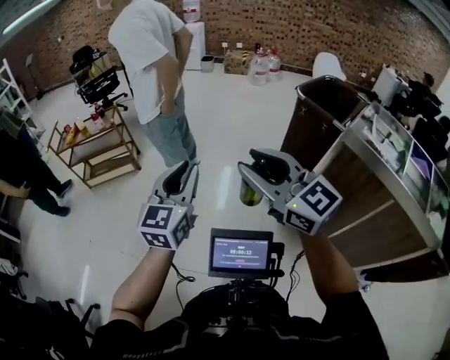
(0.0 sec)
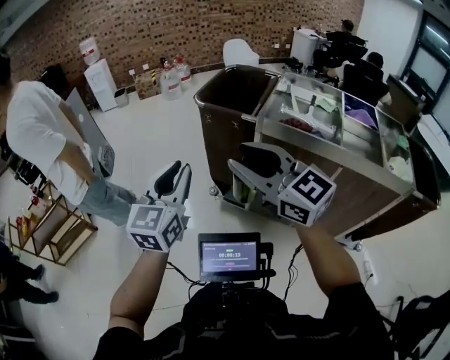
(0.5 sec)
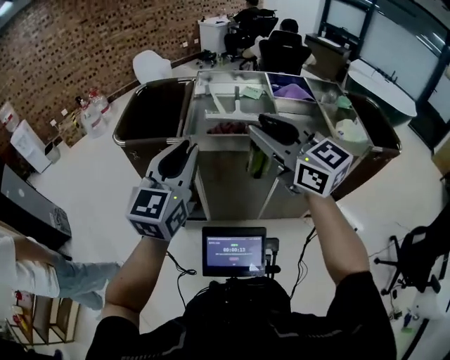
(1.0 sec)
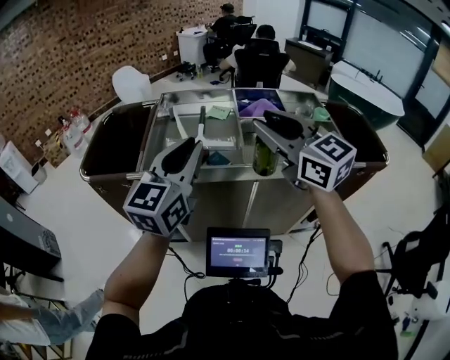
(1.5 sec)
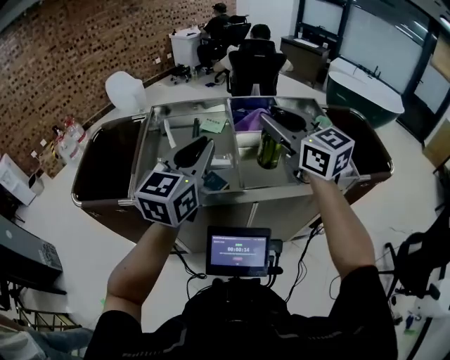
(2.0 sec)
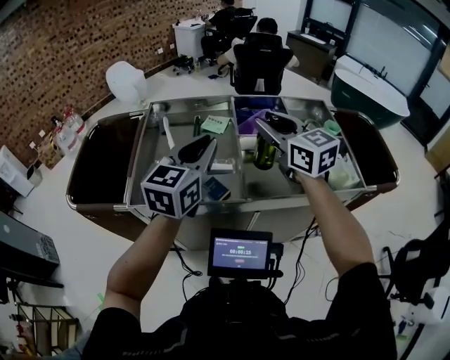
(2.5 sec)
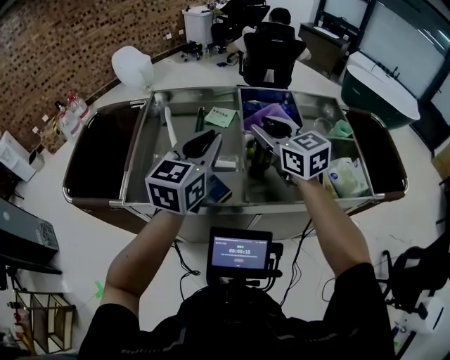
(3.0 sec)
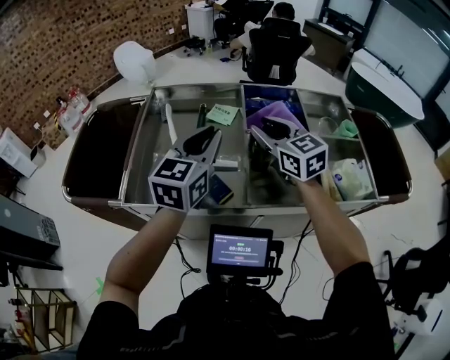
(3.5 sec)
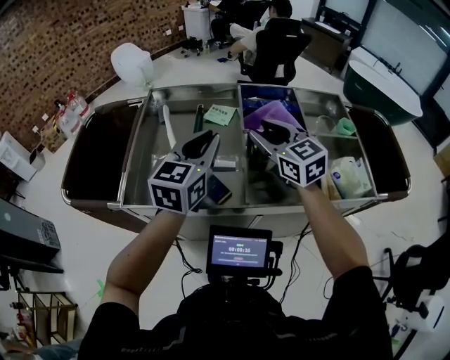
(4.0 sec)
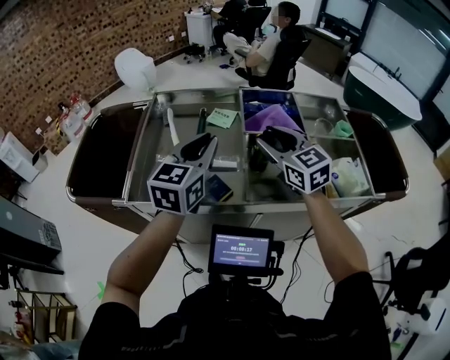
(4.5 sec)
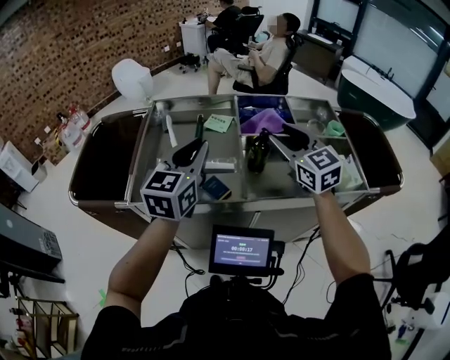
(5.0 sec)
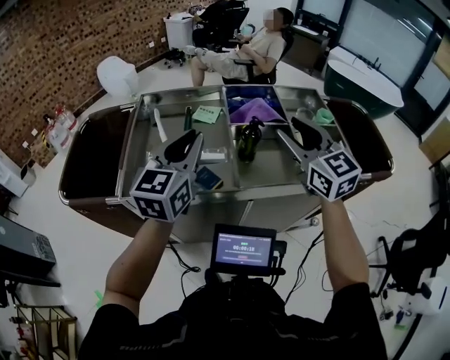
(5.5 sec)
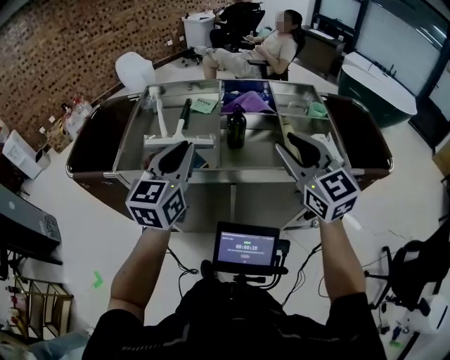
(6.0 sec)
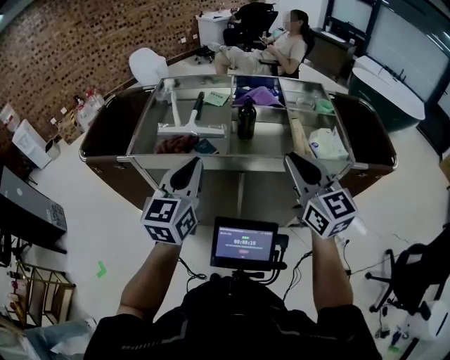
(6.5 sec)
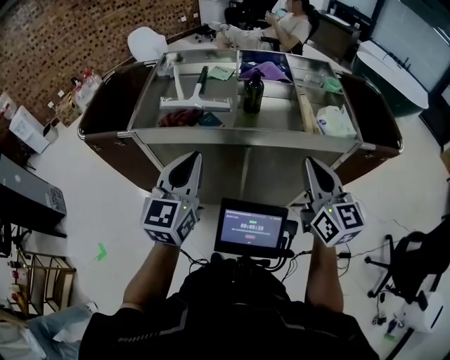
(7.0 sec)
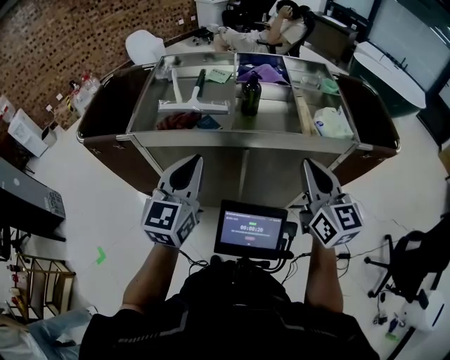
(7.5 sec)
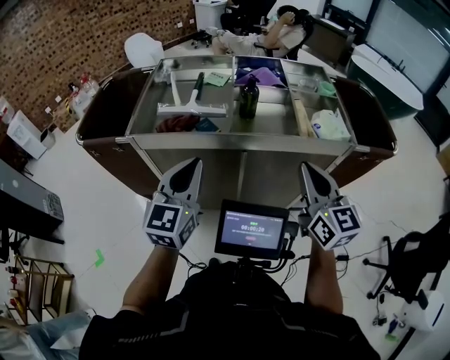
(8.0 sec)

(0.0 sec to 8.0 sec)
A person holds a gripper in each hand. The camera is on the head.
0.0 sec - 2.0 sec: The pair of grippers is taken some 1 m. The left gripper turns by roughly 70 degrees. The right gripper changes its angle by some 70 degrees.
2.0 sec - 4.0 sec: The two grippers go approximately 20 cm forward and downward.
4.0 sec - 6.0 sec: The left gripper moves backward, roughly 25 cm, while the right gripper is displaced backward and to the right by some 35 cm.
6.0 sec - 8.0 sec: The two grippers go about 15 cm backward and downward. The right gripper turns by about 20 degrees, and closes up.

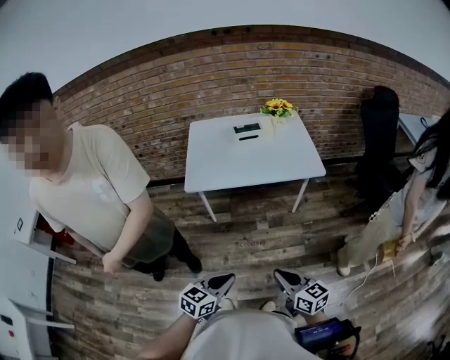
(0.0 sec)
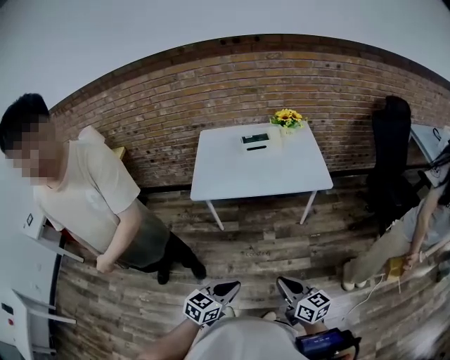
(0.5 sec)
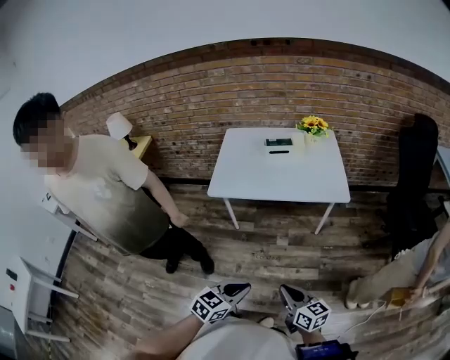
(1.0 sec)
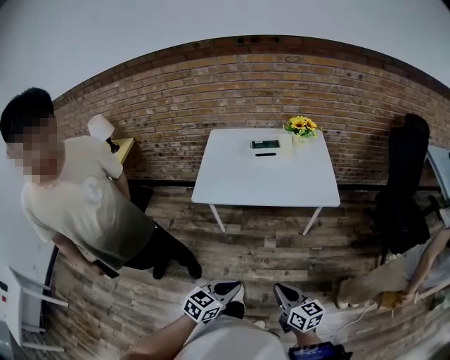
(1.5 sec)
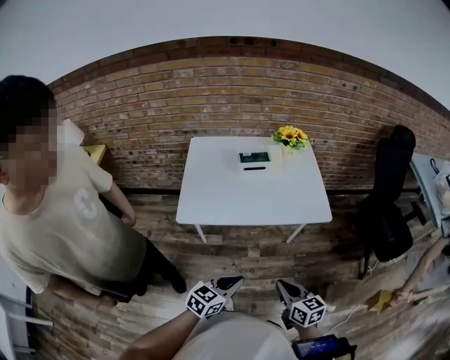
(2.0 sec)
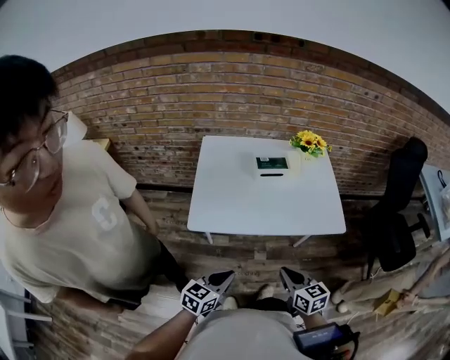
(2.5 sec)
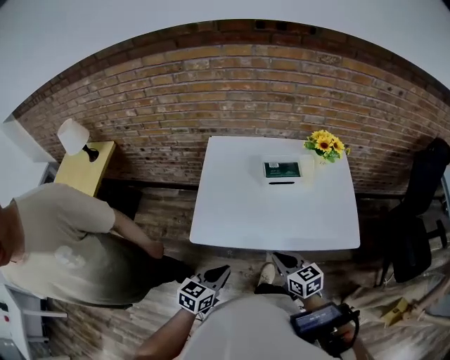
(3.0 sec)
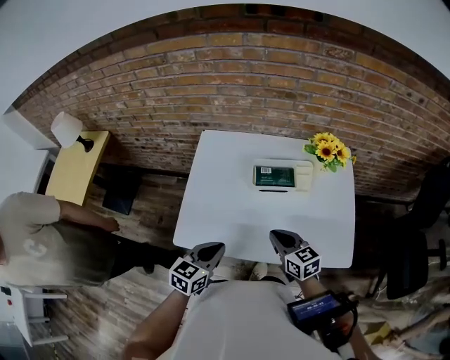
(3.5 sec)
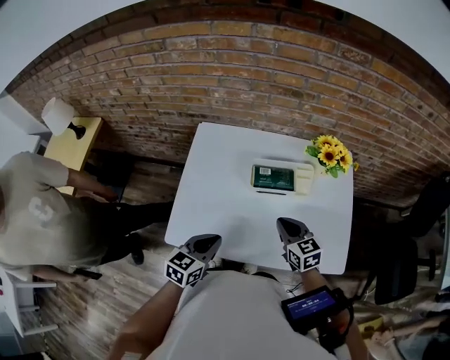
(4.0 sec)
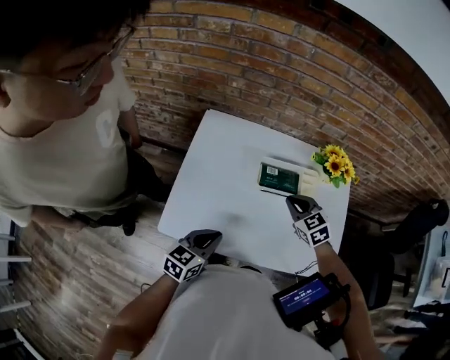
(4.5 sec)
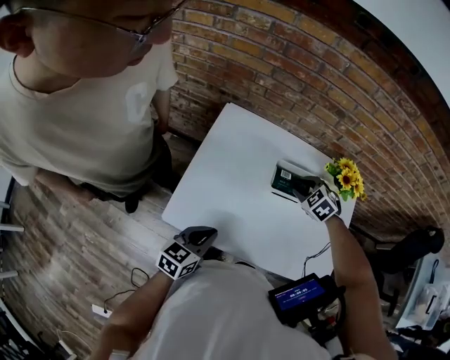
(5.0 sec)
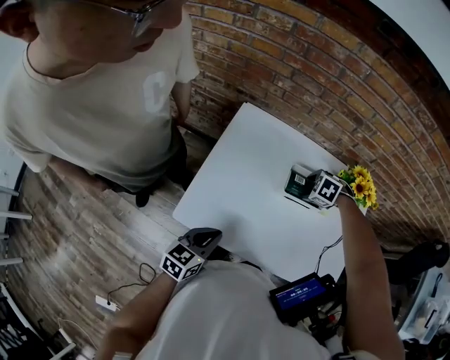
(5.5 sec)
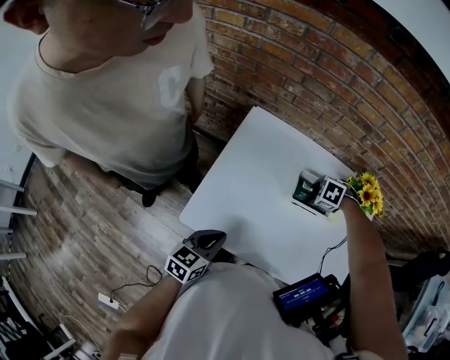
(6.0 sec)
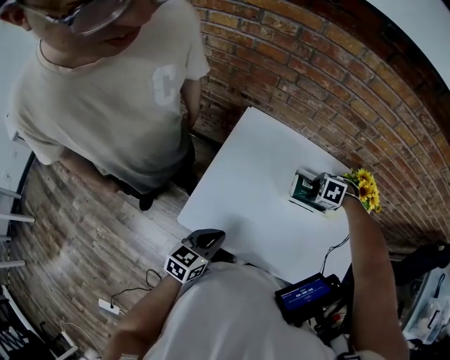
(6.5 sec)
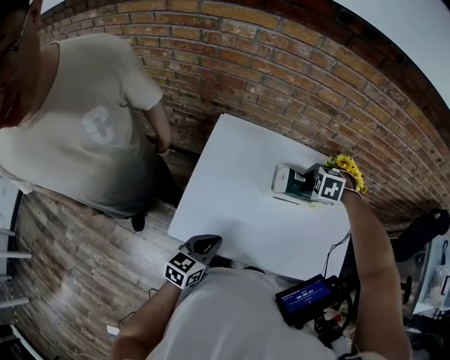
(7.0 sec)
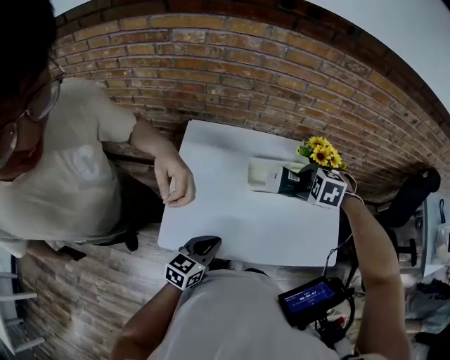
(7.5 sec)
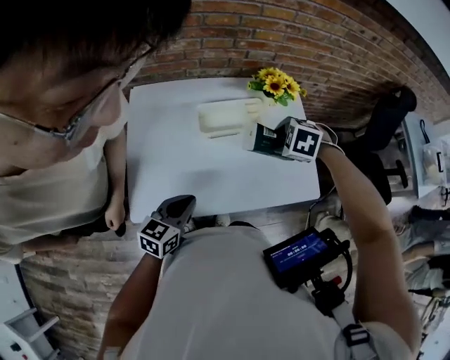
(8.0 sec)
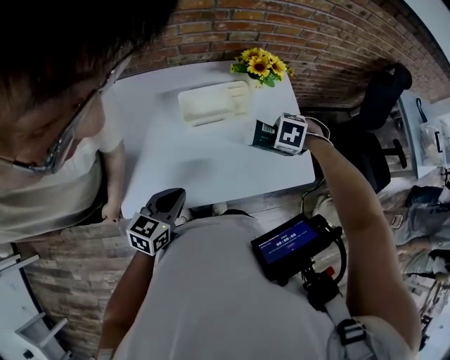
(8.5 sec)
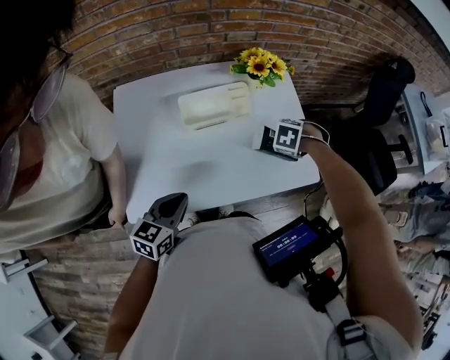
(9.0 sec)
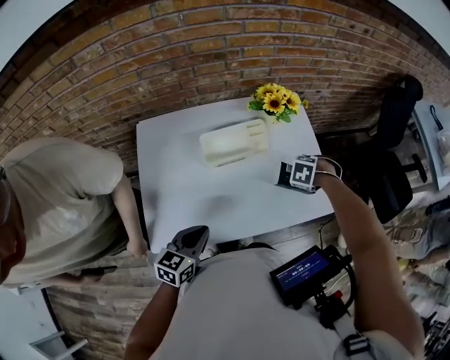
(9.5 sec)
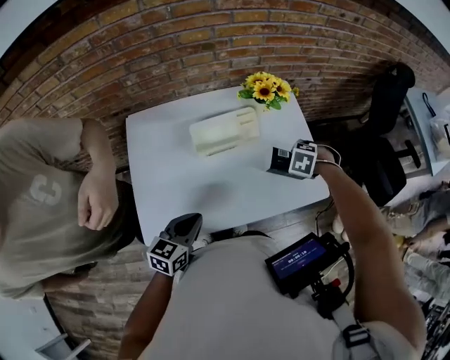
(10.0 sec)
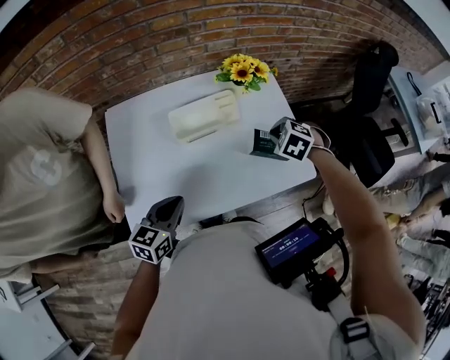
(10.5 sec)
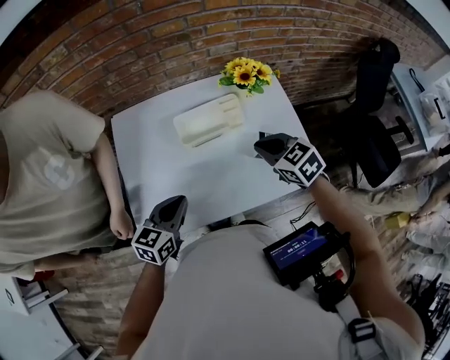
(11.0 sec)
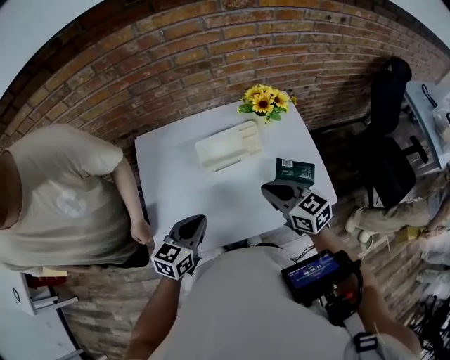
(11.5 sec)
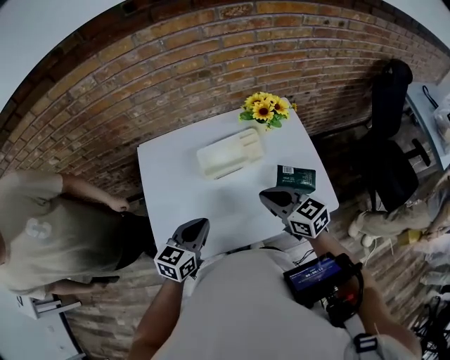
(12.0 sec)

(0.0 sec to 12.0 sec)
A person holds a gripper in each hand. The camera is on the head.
0.0 sec - 2.0 sec: The two grippers go approximately 20 cm forward.
2.0 sec - 4.0 sec: Both grippers move forward, approximately 40 cm. The right gripper rotates about 20 degrees, while the left gripper turns by about 20 degrees.
4.0 sec - 6.0 sec: The right gripper shifts by about 20 cm, tips its fingers downward by roughly 50 degrees, and opens its fingers; the left gripper changes place by some 5 cm.
6.0 sec - 8.0 sec: The left gripper moves about 10 cm, and swivels roughly 30 degrees. Meanwhile the right gripper changes place by roughly 20 cm, and swivels about 20 degrees.
8.0 sec - 10.0 sec: The right gripper moves roughly 15 cm.
10.0 sec - 12.0 sec: The right gripper shifts by approximately 20 cm, points its fingers approximately 60 degrees further upward, and closes.

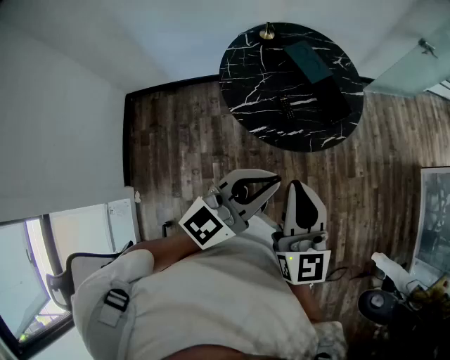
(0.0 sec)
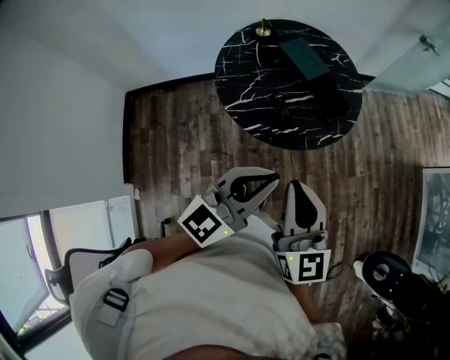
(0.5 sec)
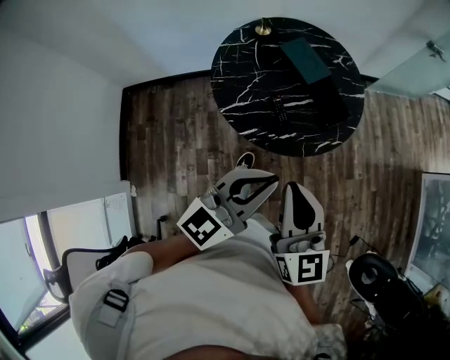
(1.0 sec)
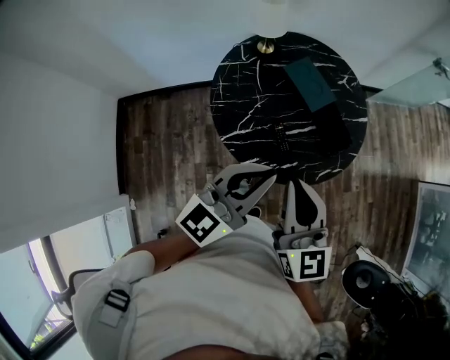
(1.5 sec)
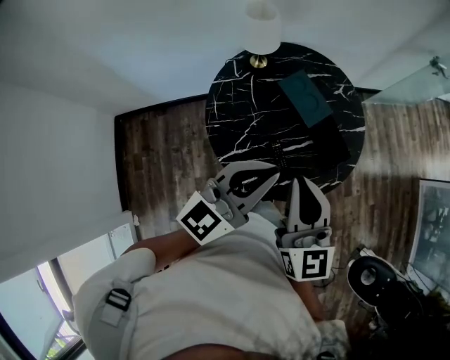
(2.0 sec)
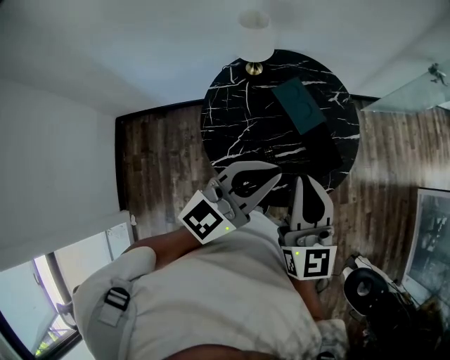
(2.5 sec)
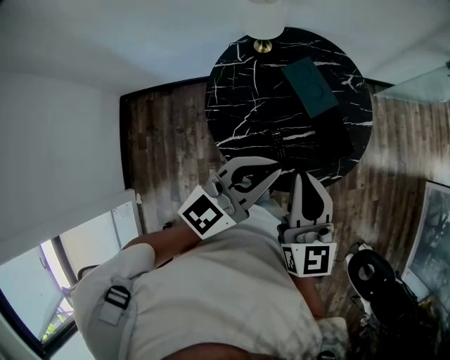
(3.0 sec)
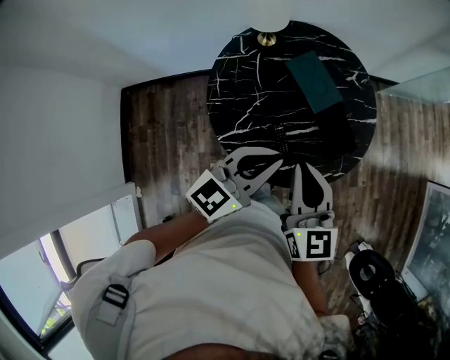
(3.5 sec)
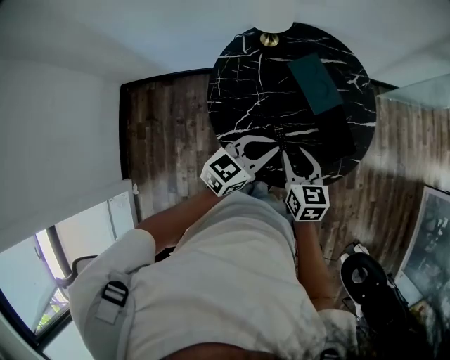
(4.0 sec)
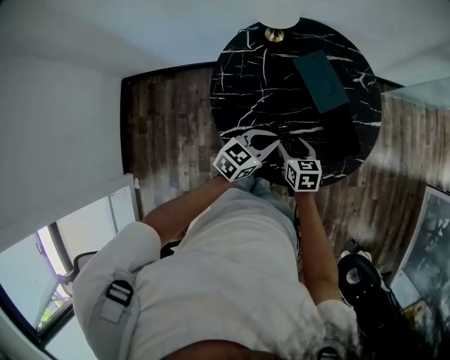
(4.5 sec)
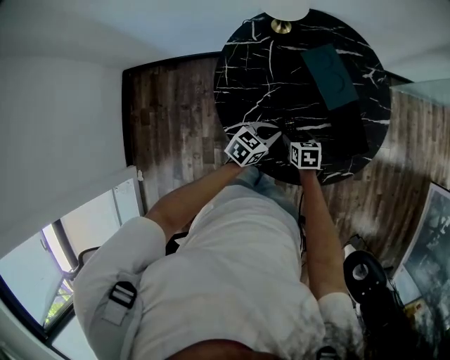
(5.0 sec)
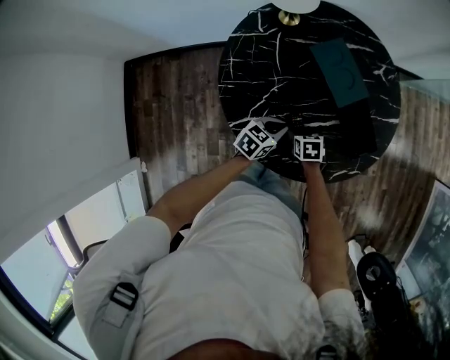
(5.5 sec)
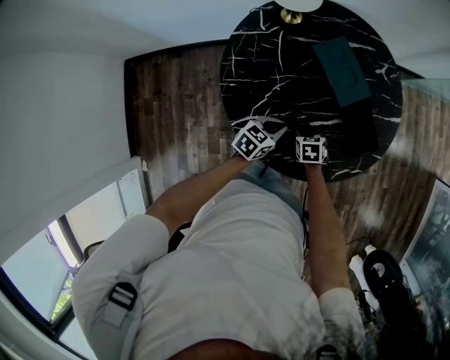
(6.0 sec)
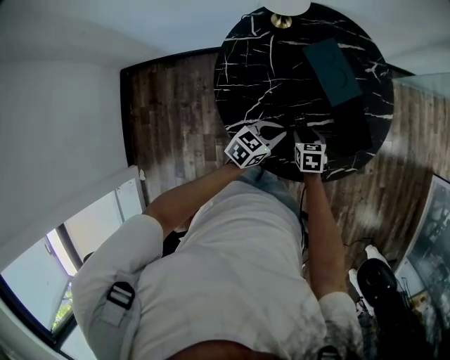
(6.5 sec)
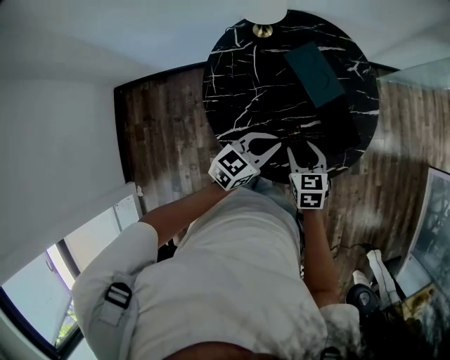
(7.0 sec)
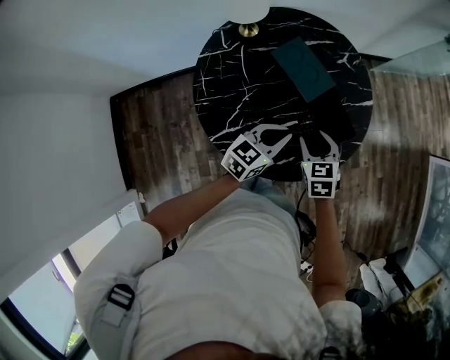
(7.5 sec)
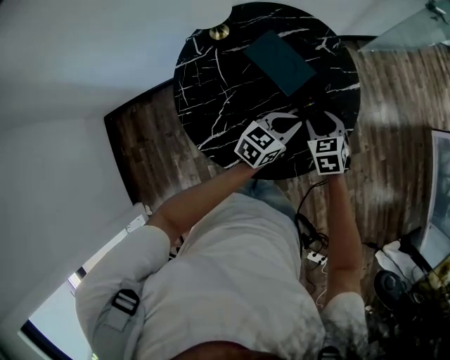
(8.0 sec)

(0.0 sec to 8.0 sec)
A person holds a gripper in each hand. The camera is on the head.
0.0 sec - 2.0 sec: Both grippers move forward, roughly 25 cm.
2.0 sec - 4.0 sec: Both grippers travel together downward, roughly 20 cm. The left gripper turns by roughly 30 degrees. Meanwhile the right gripper tips its fingers downward by approximately 30 degrees, and opens.
4.0 sec - 6.0 sec: Both grippers travel together downward, roughly 25 cm. The right gripper tips its fingers downward by about 30 degrees; the left gripper changes its angle by roughly 20 degrees.
6.0 sec - 8.0 sec: The right gripper heads upward, to the right and forward, covering about 25 cm, and rotates approximately 20 degrees. The left gripper travels to the right, upward and forward by approximately 20 cm.
